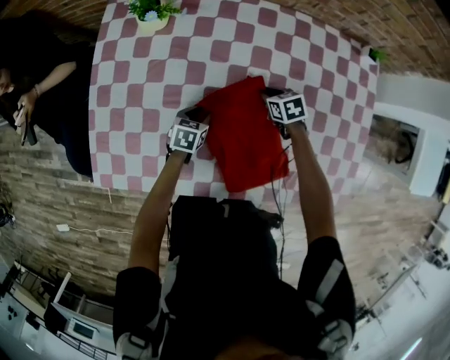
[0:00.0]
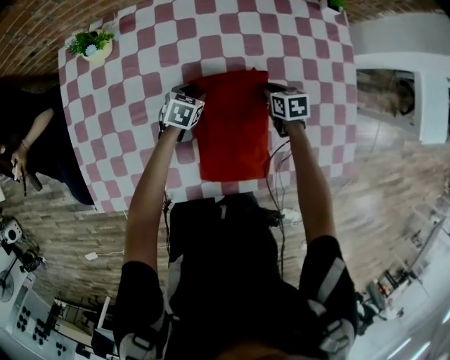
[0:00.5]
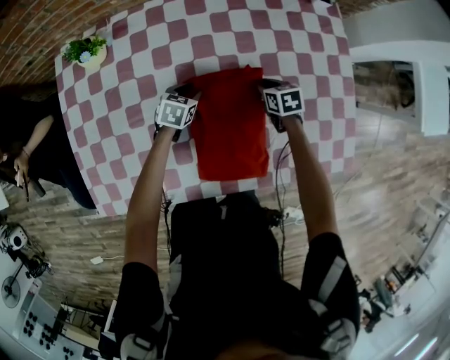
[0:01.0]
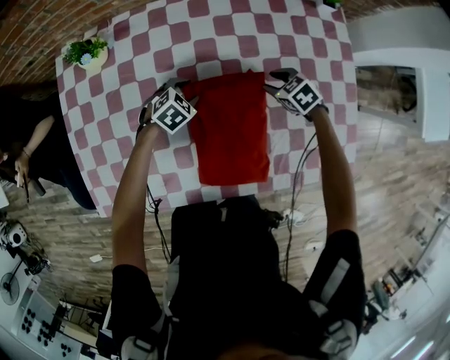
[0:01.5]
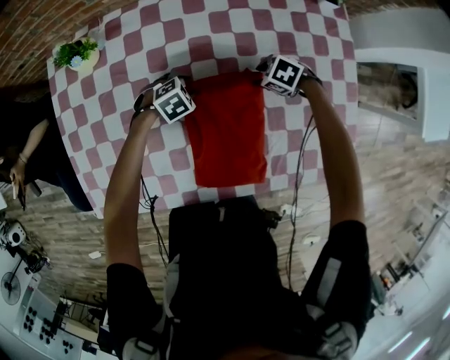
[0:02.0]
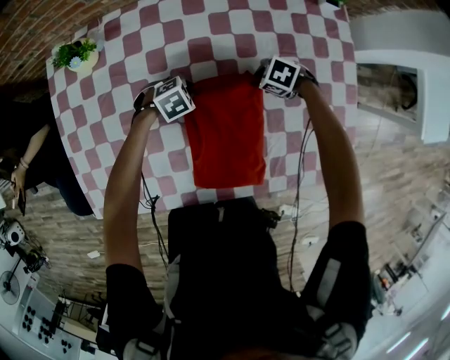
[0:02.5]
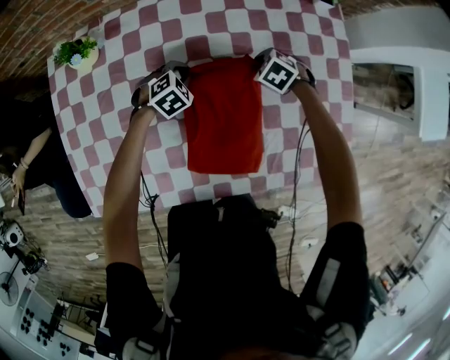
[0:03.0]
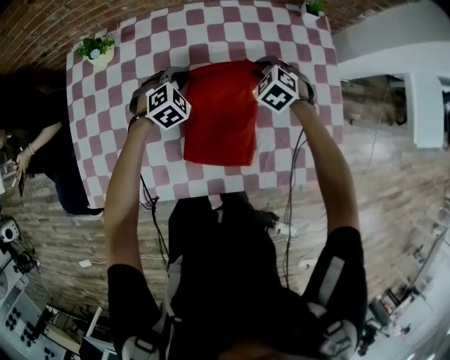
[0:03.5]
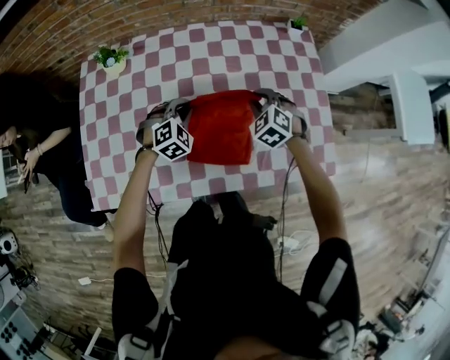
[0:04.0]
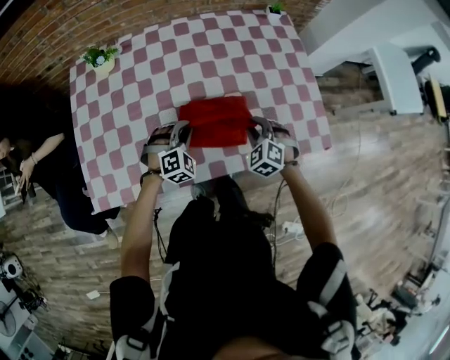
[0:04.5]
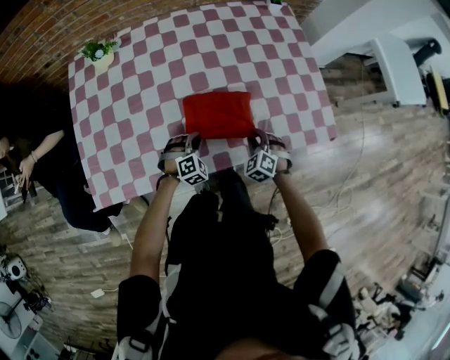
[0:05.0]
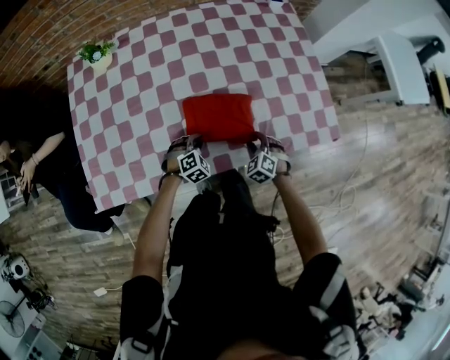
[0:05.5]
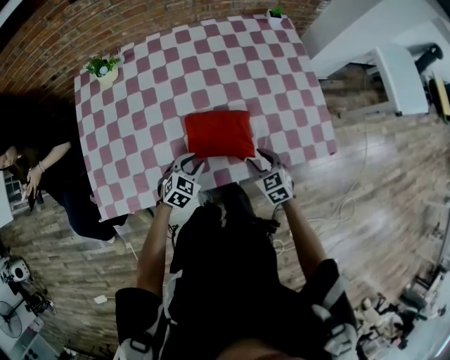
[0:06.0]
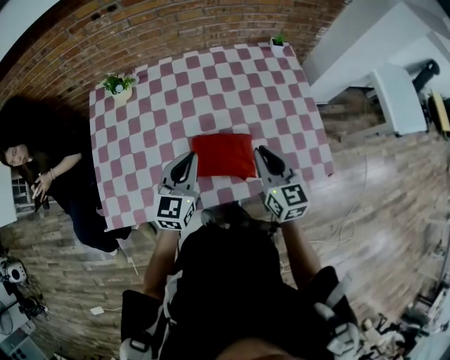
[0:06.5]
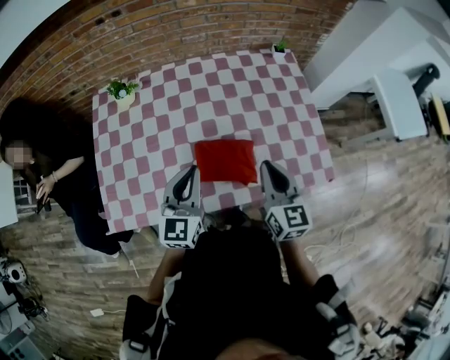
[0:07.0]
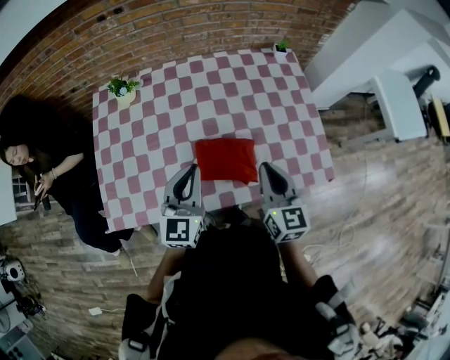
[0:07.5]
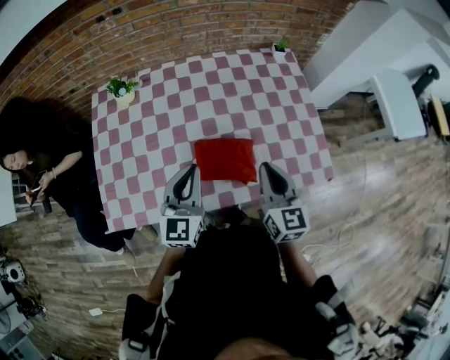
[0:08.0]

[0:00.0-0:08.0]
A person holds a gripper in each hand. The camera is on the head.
0:00.0 to 0:02.0: The right gripper shifts by about 15 cm, swivels approximately 30 degrees, and opens its fingers, while the left gripper changes place by about 15 cm, and rotates around the line of its fingers by about 60 degrees, clockwise from behind.
0:02.0 to 0:04.0: Both grippers travel together upward, roughly 20 cm. The left gripper rotates roughly 30 degrees, and closes its fingers. The right gripper rotates approximately 40 degrees, and closes up.
0:04.0 to 0:06.0: The two grippers go roughly 20 cm backward. The right gripper rotates about 40 degrees, and opens up. Meanwhile the left gripper swivels about 30 degrees, and opens up.
0:06.0 to 0:08.0: Both grippers move upward, approximately 25 cm. The left gripper points its fingers roughly 40 degrees further upward, and closes up. Meanwhile the right gripper tips its fingers upward by some 30 degrees, and closes.

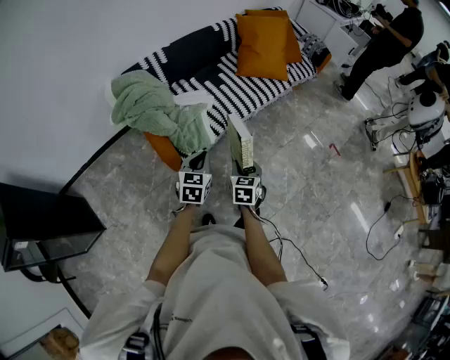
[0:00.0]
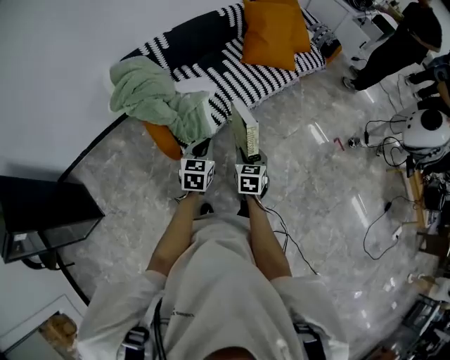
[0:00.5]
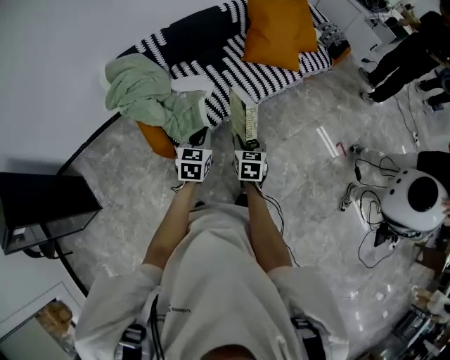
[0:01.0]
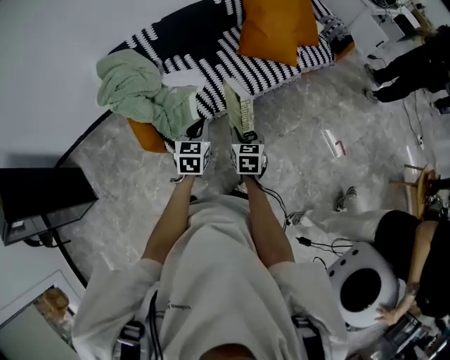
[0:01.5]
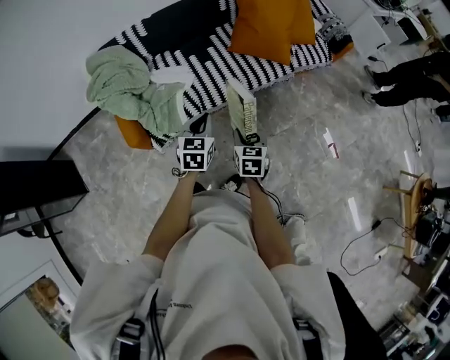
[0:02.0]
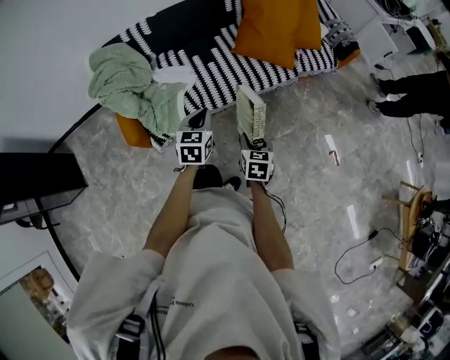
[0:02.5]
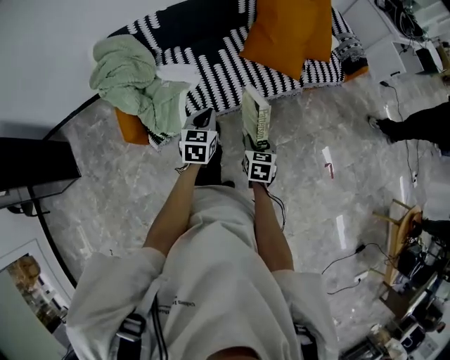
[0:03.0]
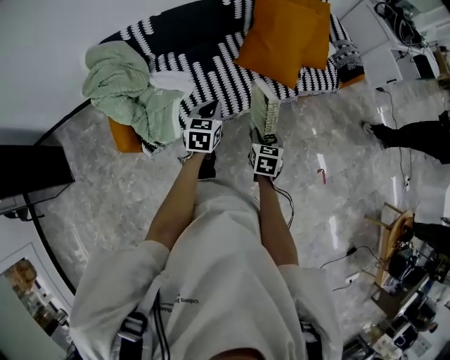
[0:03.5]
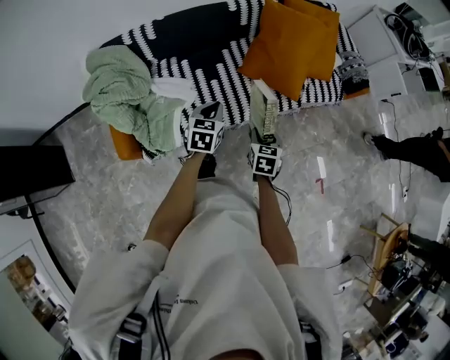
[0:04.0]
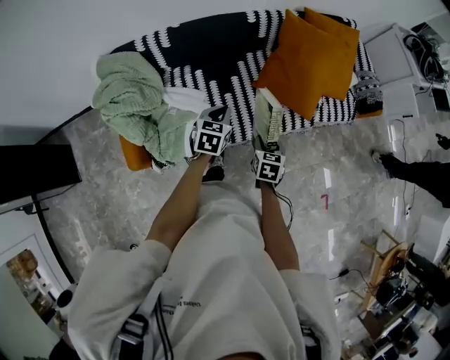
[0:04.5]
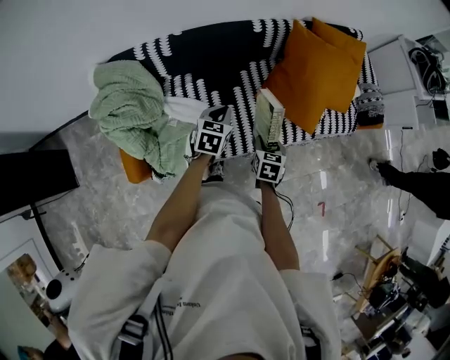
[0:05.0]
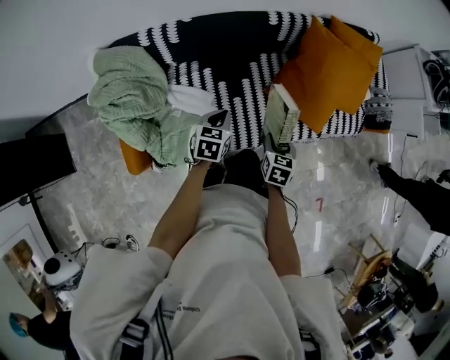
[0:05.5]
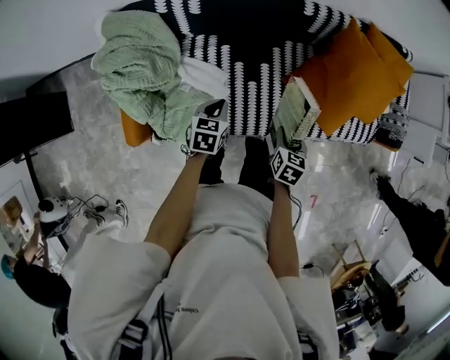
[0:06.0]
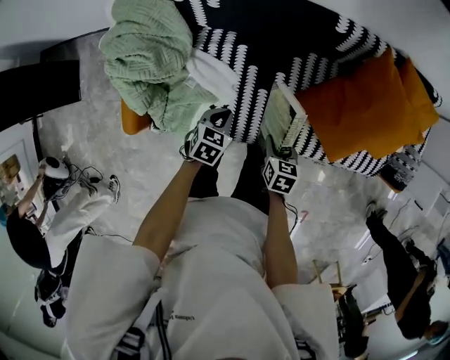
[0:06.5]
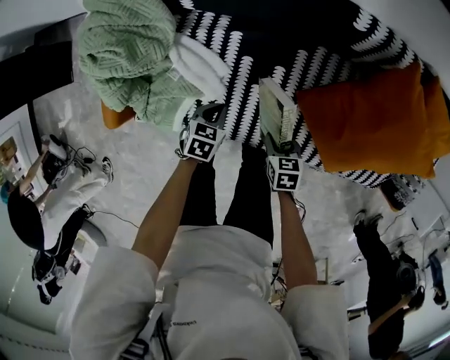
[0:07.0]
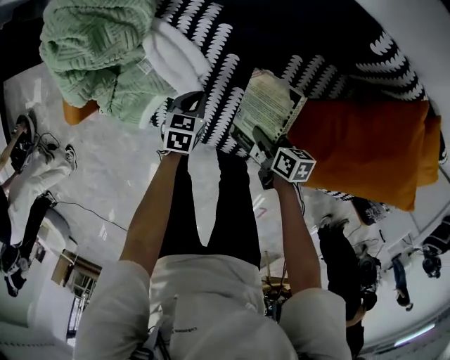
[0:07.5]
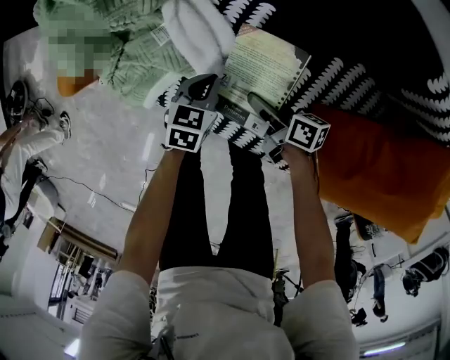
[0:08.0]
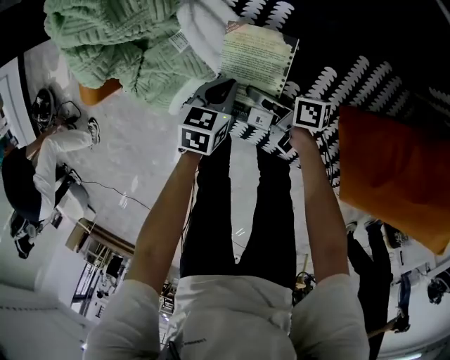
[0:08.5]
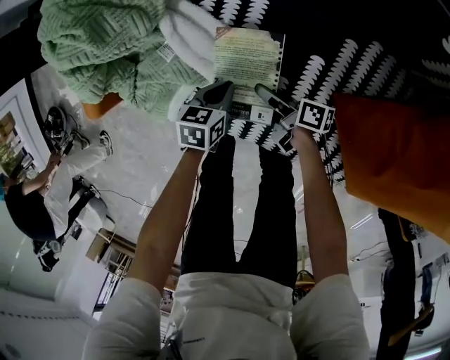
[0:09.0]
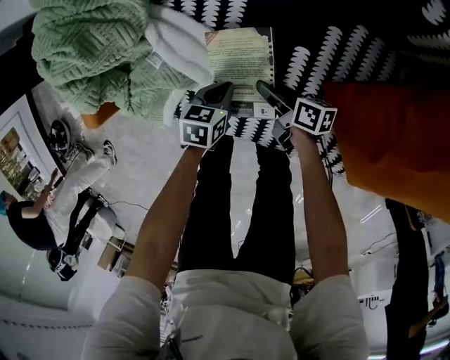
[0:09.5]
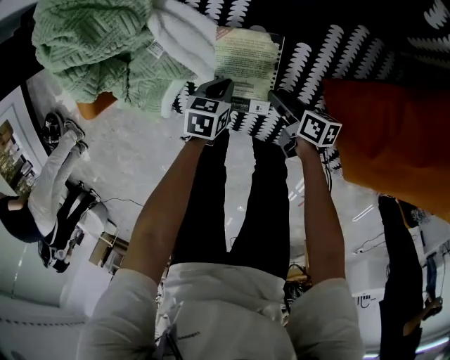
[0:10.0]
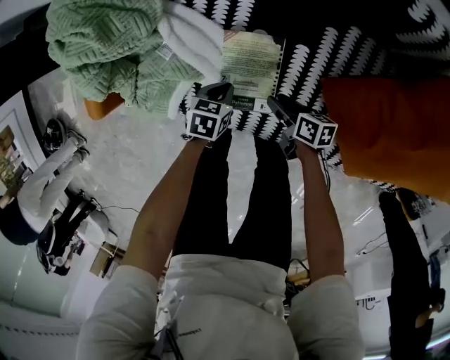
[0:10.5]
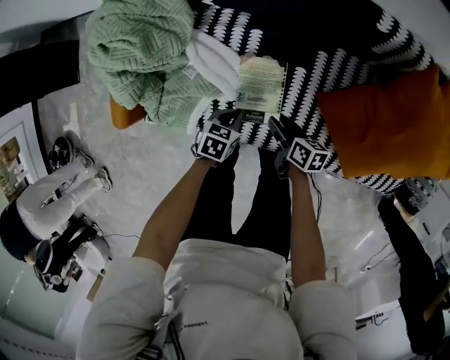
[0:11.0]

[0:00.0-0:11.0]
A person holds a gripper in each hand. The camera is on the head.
0:00.0 to 0:02.0: Both grippers move forward and to the right, some 30 cm.
0:02.0 to 0:03.5: The left gripper heads forward, covering roughly 15 cm, while the right gripper shifts about 15 cm forward and to the right.
0:03.5 to 0:05.5: The left gripper heads forward, to the left and downward, covering about 25 cm, while the right gripper travels forward and to the left by some 25 cm.
0:05.5 to 0:07.5: Both grippers travel together downward, roughly 30 cm. The left gripper changes its angle by about 30 degrees. The right gripper swivels roughly 60 degrees.
0:07.5 to 0:09.0: The left gripper moves downward, approximately 5 cm. Meanwhile the right gripper shifts roughly 15 cm downward, to the left and forward, and swivels approximately 40 degrees.
0:09.0 to 0:11.0: The grippers both shift upward by some 10 cm. The right gripper turns by some 40 degrees.

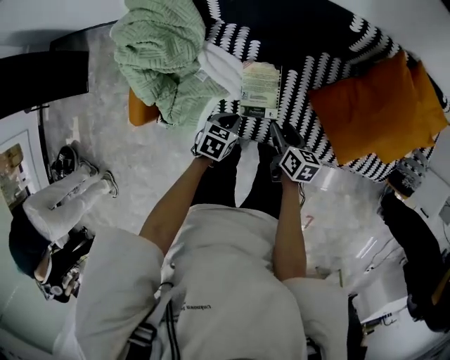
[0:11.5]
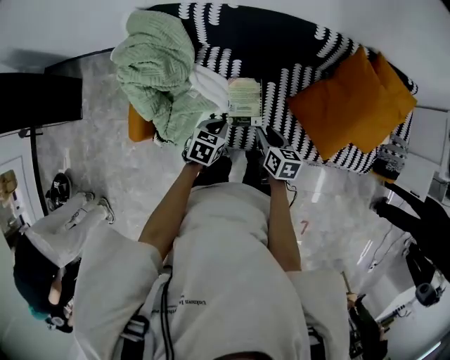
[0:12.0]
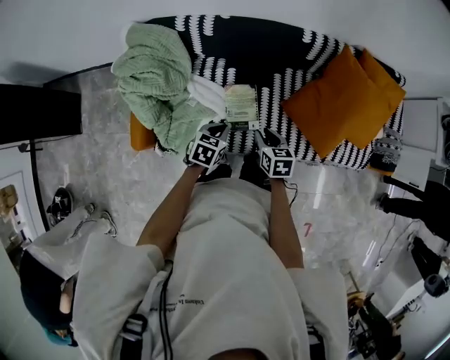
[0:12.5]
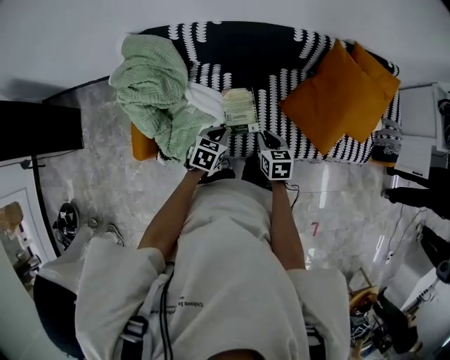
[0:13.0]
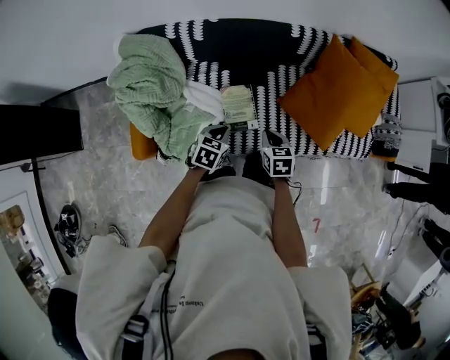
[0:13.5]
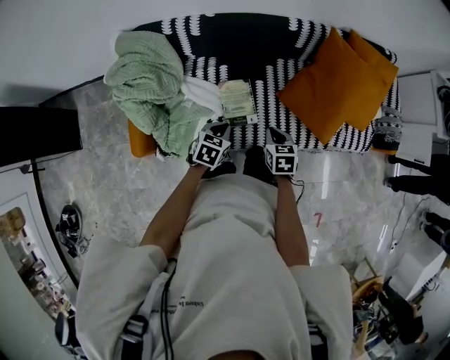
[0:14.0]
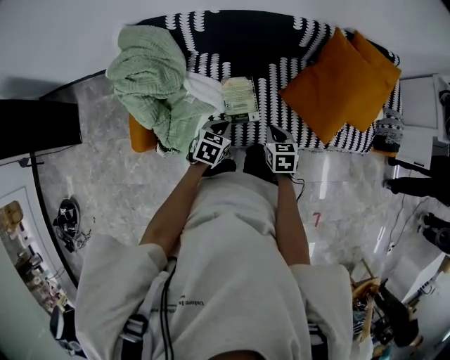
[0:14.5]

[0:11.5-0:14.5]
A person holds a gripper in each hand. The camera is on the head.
0:11.5 to 0:13.0: Both grippers move upward, roughly 10 cm. The right gripper changes its angle by roughly 20 degrees, and closes up.
0:13.0 to 0:14.5: The grippers stay close to where they were, moving slightly.

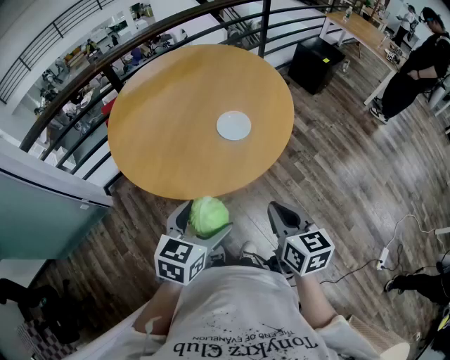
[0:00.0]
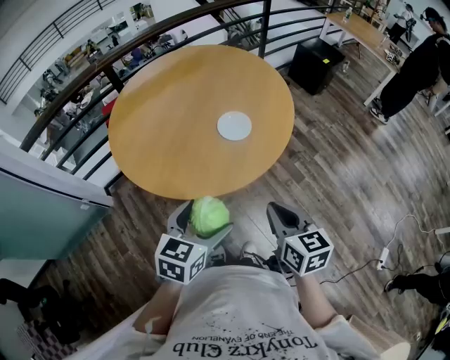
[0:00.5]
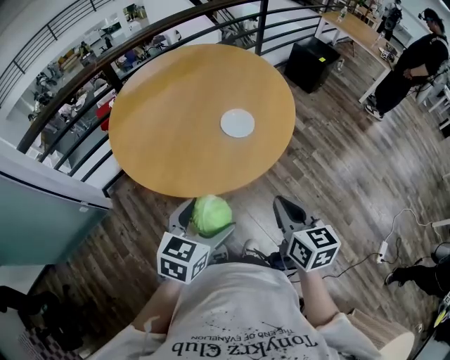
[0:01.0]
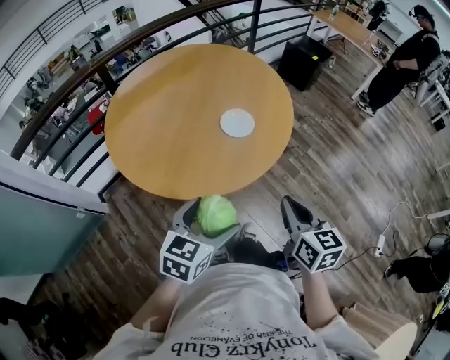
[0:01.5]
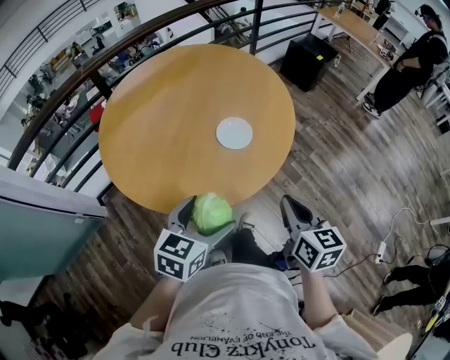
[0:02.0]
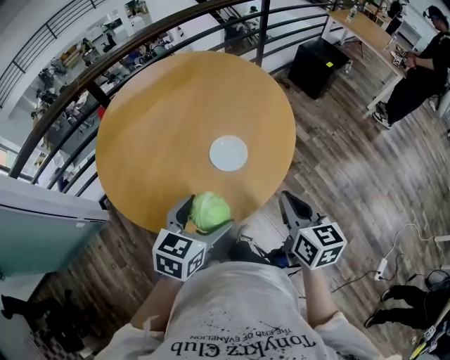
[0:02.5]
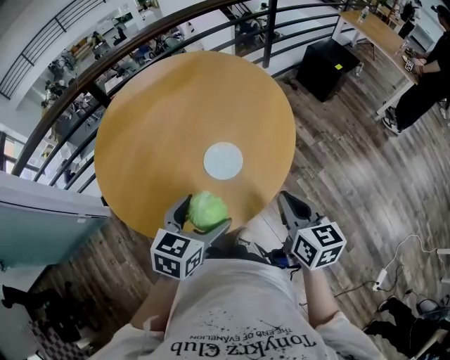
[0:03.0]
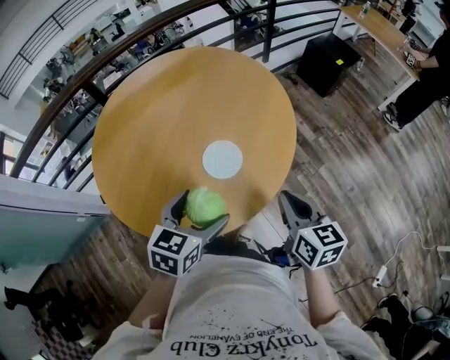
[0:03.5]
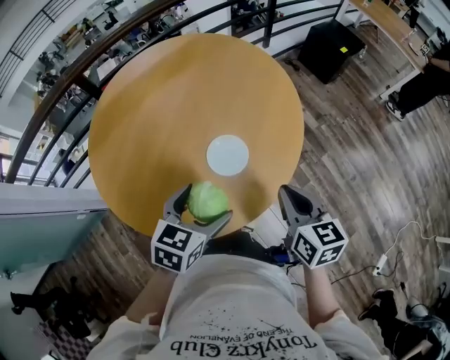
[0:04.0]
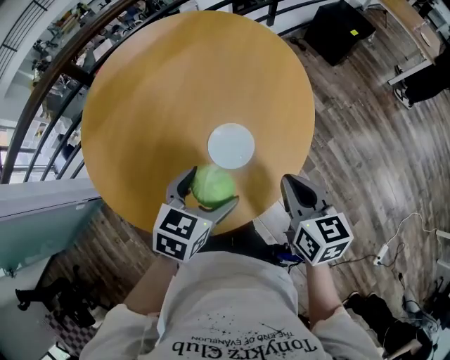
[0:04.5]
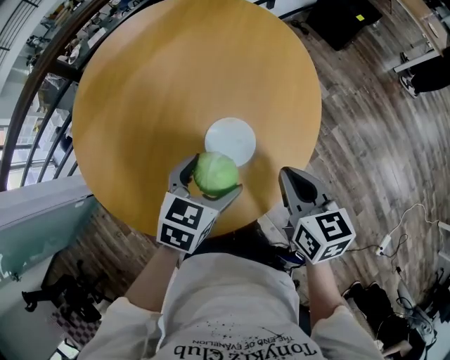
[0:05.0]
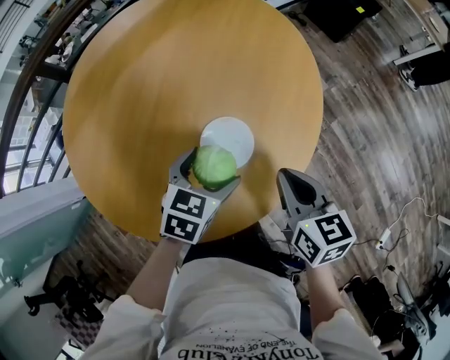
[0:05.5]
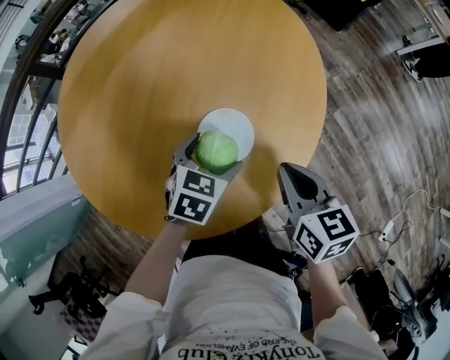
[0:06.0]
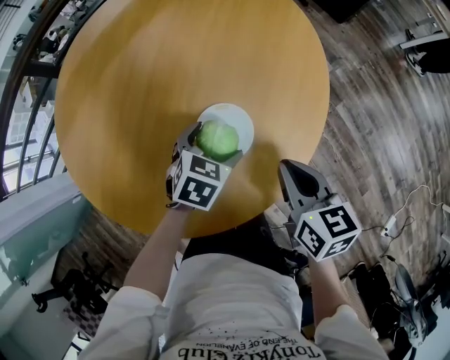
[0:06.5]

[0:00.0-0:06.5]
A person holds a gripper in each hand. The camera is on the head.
0:00.0 to 0:02.0: The two grippers go about 5 cm forward.
0:02.0 to 0:04.5: The two grippers go about 20 cm forward.
0:04.5 to 0:06.5: The right gripper travels downward and forward by some 10 cm. The left gripper shifts roughly 20 cm downward and forward.
